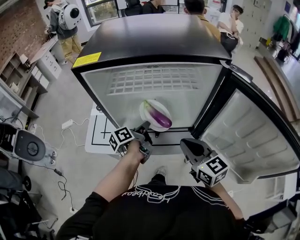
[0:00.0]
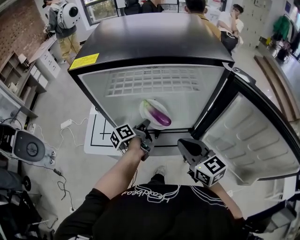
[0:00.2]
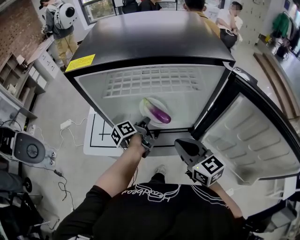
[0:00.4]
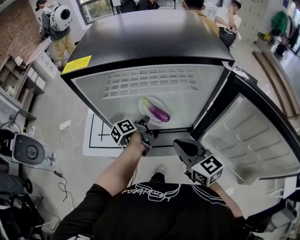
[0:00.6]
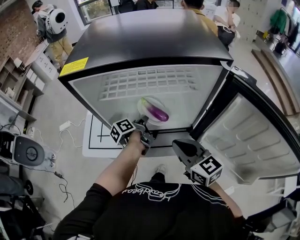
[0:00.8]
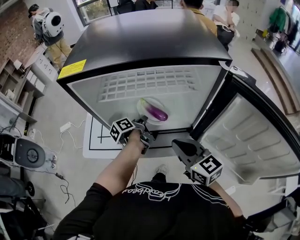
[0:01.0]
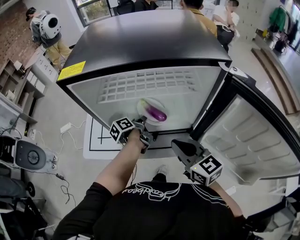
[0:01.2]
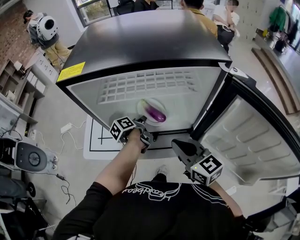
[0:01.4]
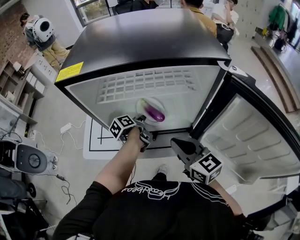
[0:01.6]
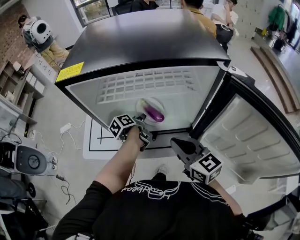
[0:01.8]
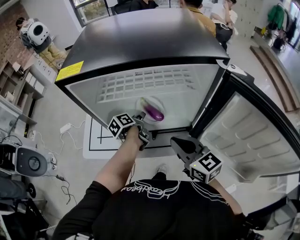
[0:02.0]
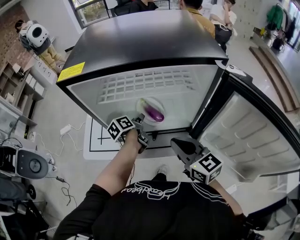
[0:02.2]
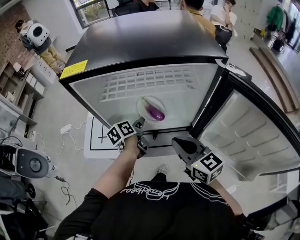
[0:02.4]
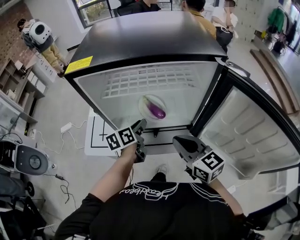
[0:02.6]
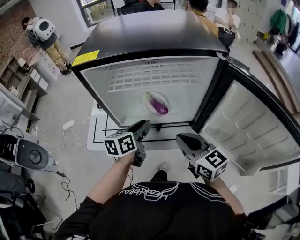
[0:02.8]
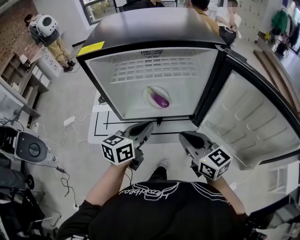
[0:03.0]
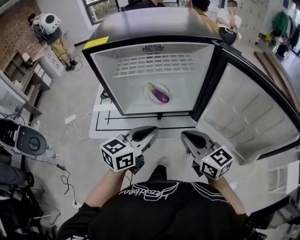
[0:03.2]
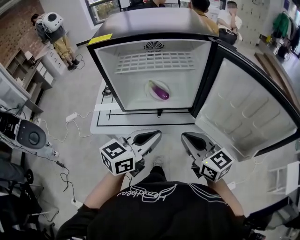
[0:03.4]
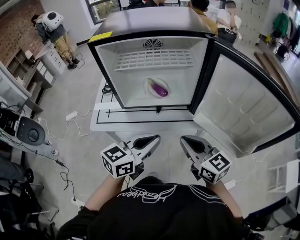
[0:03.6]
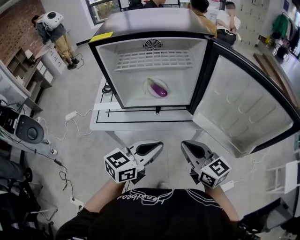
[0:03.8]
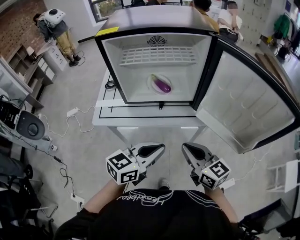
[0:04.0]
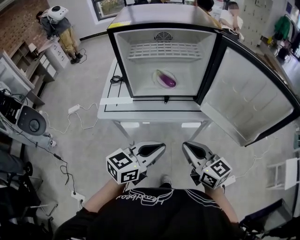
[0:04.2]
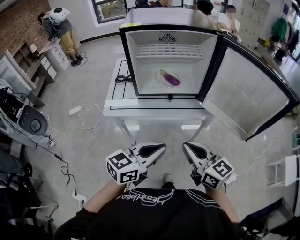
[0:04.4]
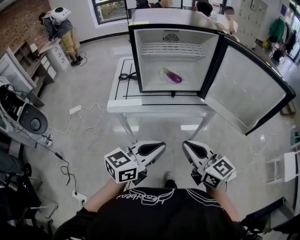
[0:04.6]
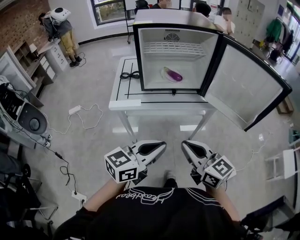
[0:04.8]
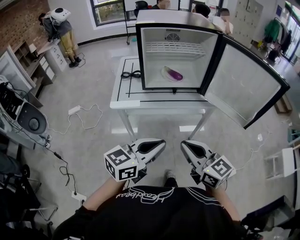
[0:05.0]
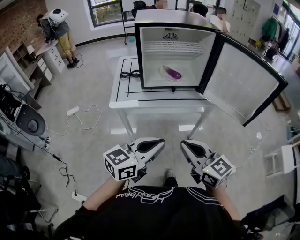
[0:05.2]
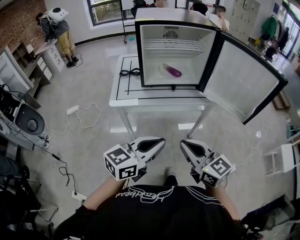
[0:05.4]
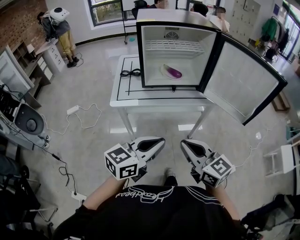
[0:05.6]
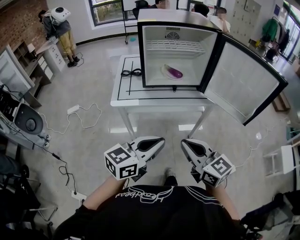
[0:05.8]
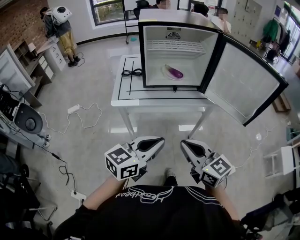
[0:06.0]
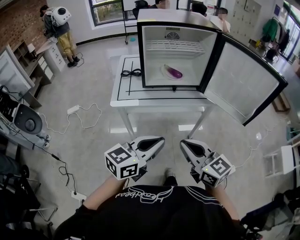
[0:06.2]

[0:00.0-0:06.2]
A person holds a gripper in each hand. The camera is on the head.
0:00.0 to 0:01.6: The left gripper moves forward, roughly 10 cm. The right gripper shifts by some 5 cm.
0:01.6 to 0:03.2: The right gripper travels backward by about 10 cm, while the left gripper goes about 30 cm backward and upward, rotates around the line of its fingers by roughly 60 degrees, clockwise from behind, and opens, then closes once more.
0:03.2 to 0:04.6: Both grippers travel together backward, about 25 cm.
0:04.6 to 0:06.2: The right gripper is displaced backward by roughly 5 cm. Meanwhile the left gripper ends up about 5 cm from where it was.

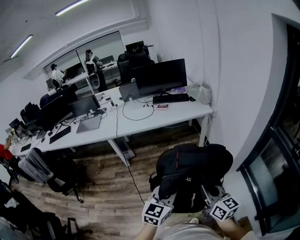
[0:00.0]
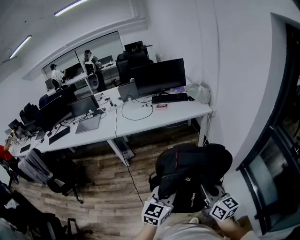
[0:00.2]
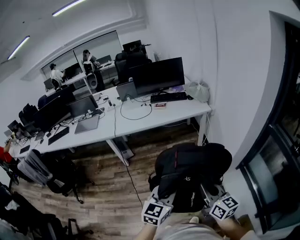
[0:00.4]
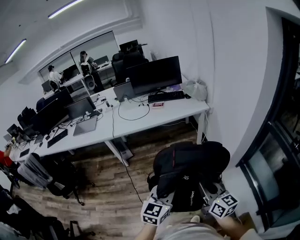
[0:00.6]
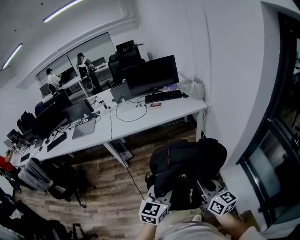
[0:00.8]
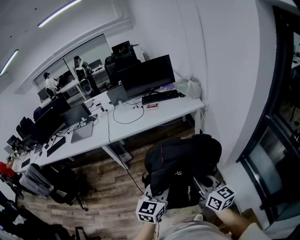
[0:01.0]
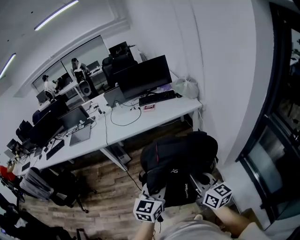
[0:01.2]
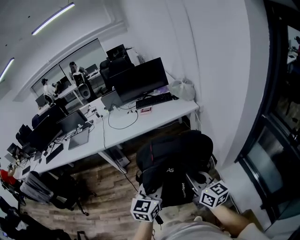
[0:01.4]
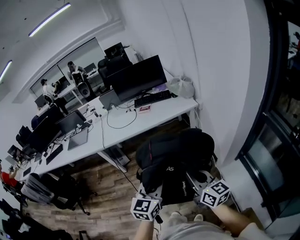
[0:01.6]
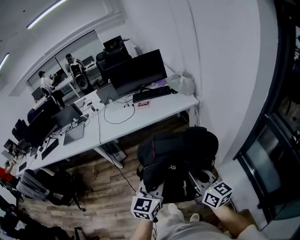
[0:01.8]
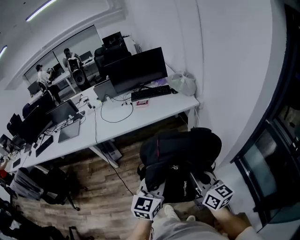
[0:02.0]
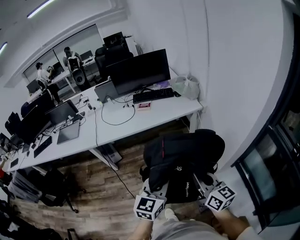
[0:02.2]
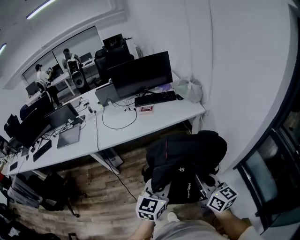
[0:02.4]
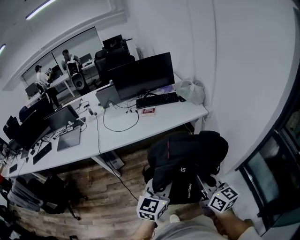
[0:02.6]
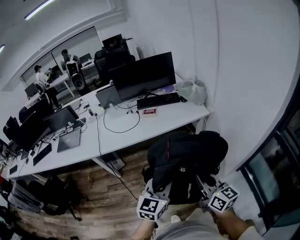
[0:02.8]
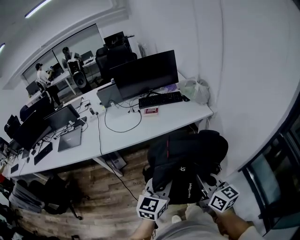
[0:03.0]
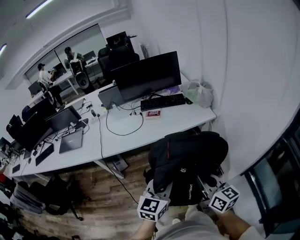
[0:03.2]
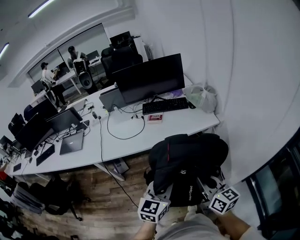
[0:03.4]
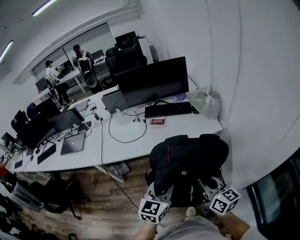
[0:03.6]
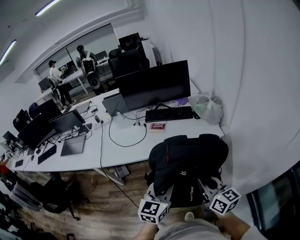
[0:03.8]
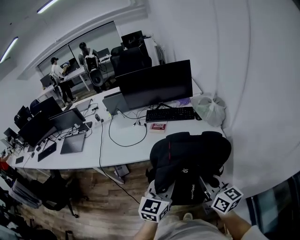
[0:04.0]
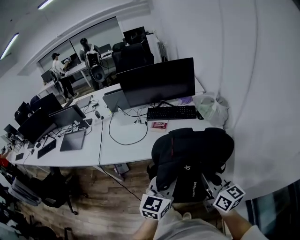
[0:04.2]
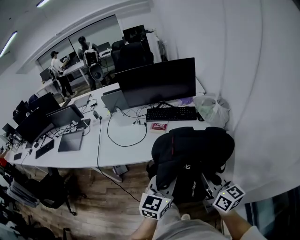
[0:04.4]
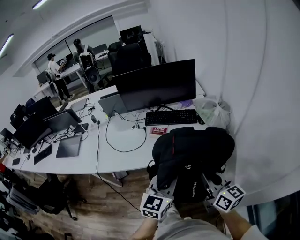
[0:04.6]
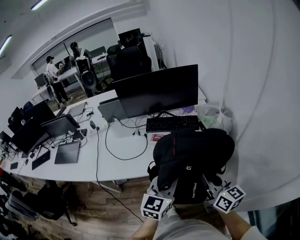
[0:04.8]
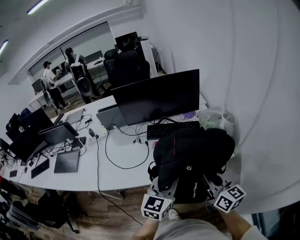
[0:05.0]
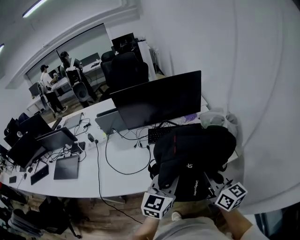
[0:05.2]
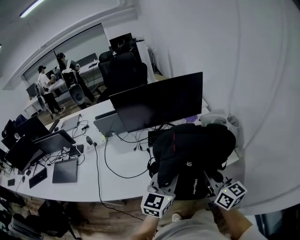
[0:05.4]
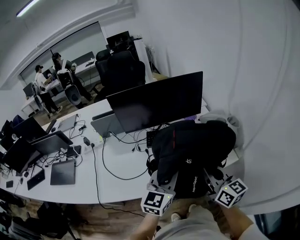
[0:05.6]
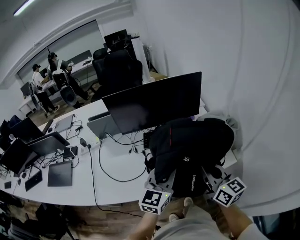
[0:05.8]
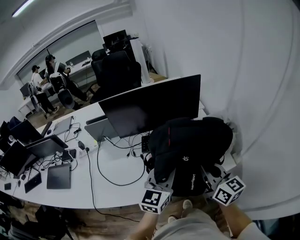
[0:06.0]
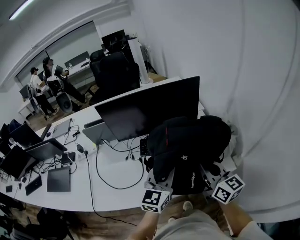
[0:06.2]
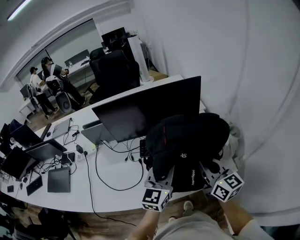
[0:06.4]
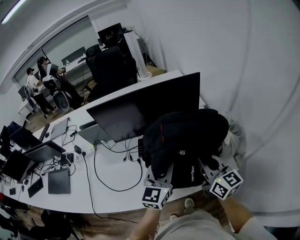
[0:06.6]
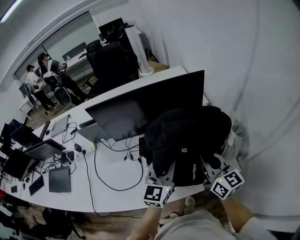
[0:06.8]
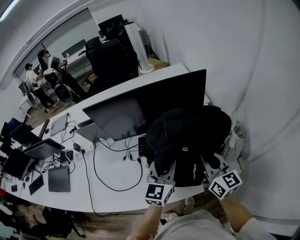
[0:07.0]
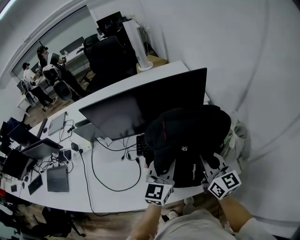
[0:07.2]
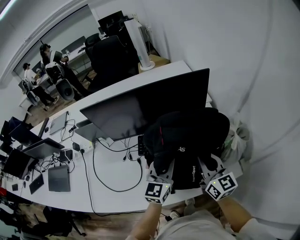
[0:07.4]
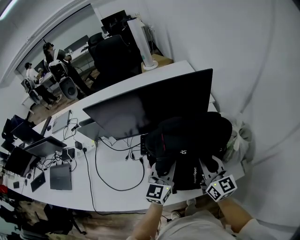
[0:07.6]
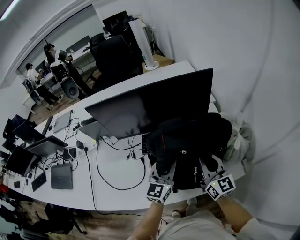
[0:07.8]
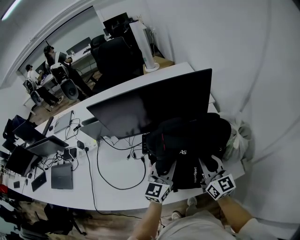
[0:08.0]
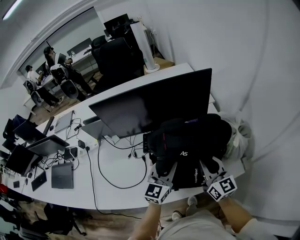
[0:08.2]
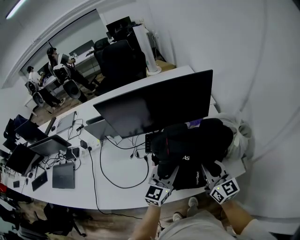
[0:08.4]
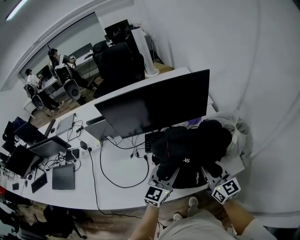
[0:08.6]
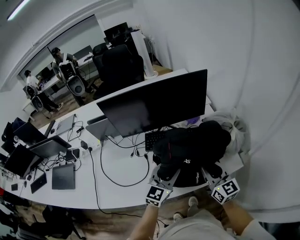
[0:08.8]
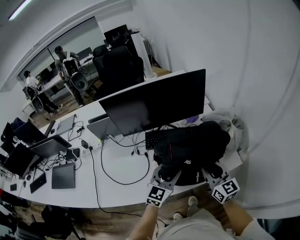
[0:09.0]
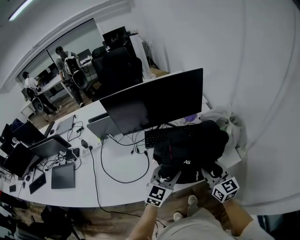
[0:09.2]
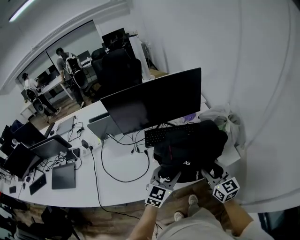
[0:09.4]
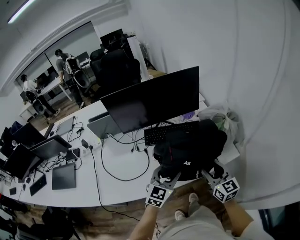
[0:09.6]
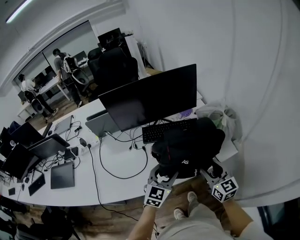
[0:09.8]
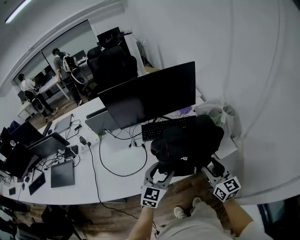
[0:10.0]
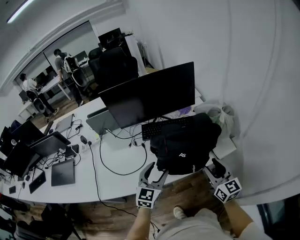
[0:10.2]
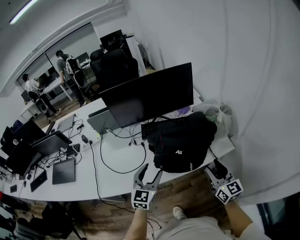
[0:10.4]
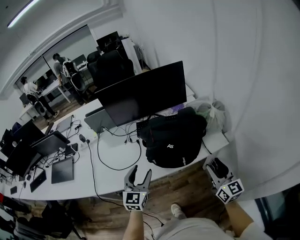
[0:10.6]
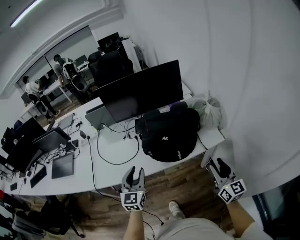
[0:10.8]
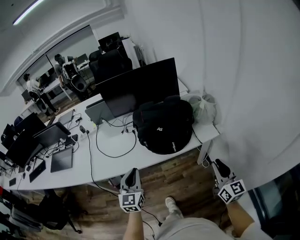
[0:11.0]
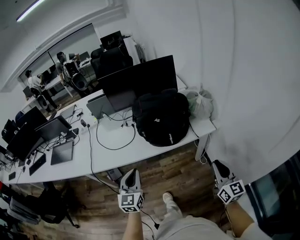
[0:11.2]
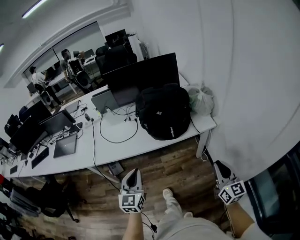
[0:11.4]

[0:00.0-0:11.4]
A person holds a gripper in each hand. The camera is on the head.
0:00.0 to 0:01.4: The grippers both shift forward by approximately 10 cm.
0:01.4 to 0:02.8: The grippers both shift forward by about 20 cm.
0:02.8 to 0:04.2: Both grippers travel together forward, some 25 cm.
0:04.2 to 0:05.6: Both grippers travel together forward, roughly 25 cm.
0:05.6 to 0:07.2: The grippers both shift forward by some 20 cm.
0:07.2 to 0:08.6: The grippers both shift backward by roughly 10 cm. The right gripper opens up. The left gripper opens.
0:08.6 to 0:10.0: Both grippers travel together backward, some 15 cm. The right gripper opens its fingers; the left gripper opens.
0:10.0 to 0:11.4: The right gripper travels backward and to the right by approximately 35 cm, and closes up; the left gripper heads backward, covering about 30 cm, changes its angle by roughly 30 degrees, and closes.

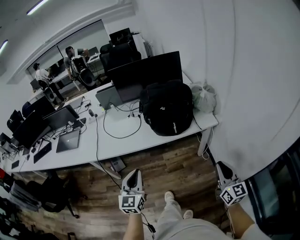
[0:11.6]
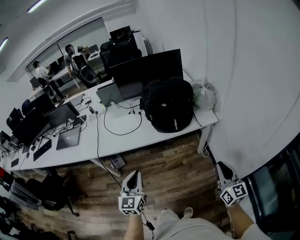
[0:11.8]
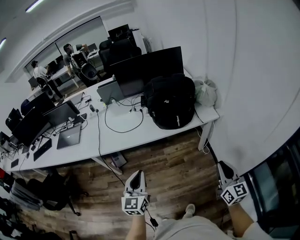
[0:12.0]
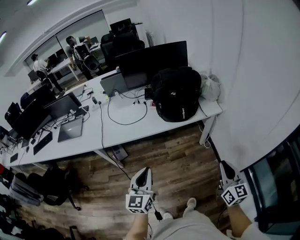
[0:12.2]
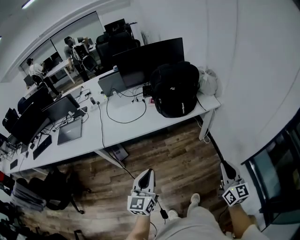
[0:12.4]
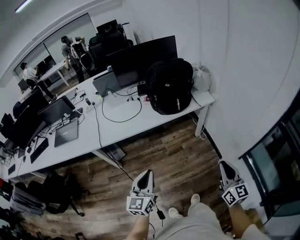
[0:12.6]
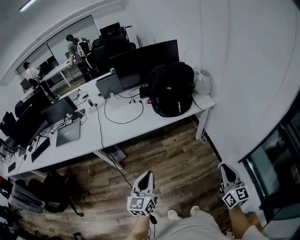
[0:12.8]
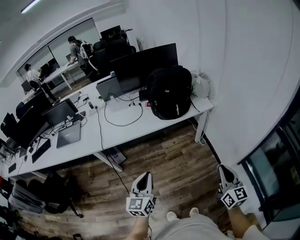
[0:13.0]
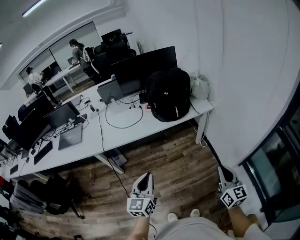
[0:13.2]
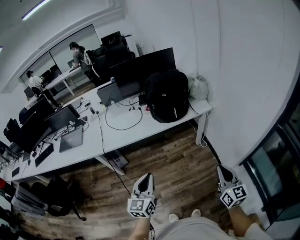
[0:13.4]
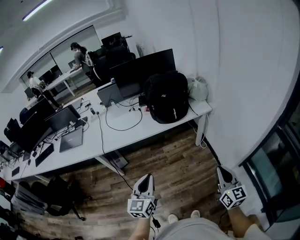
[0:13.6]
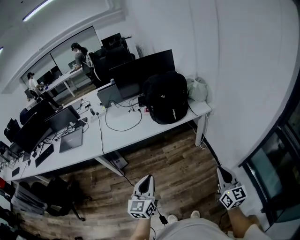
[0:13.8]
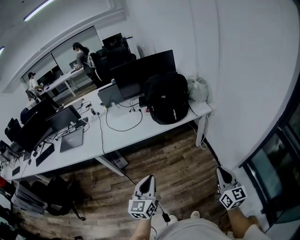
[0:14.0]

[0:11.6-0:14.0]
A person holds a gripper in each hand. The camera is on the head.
0:11.6 to 0:12.8: The left gripper shifts roughly 15 cm backward, while the right gripper moves backward and to the left, roughly 20 cm.
0:12.8 to 0:14.0: The left gripper moves approximately 5 cm.

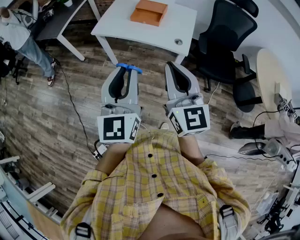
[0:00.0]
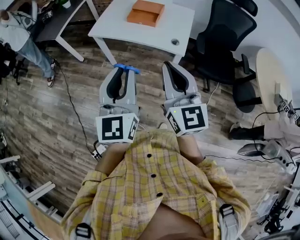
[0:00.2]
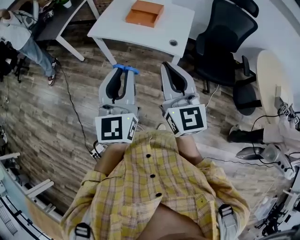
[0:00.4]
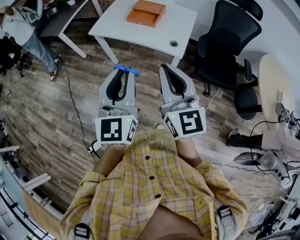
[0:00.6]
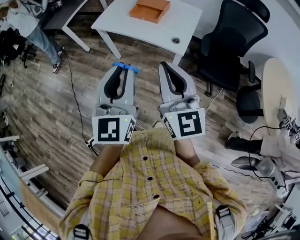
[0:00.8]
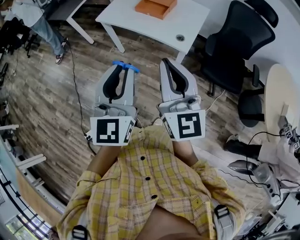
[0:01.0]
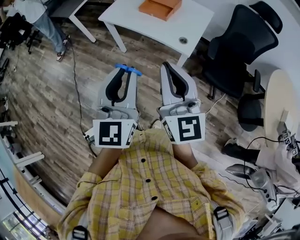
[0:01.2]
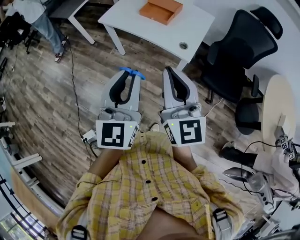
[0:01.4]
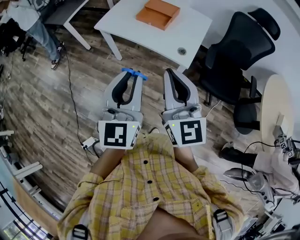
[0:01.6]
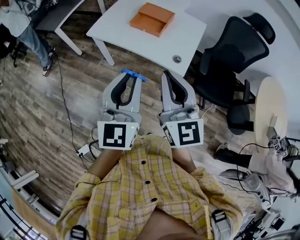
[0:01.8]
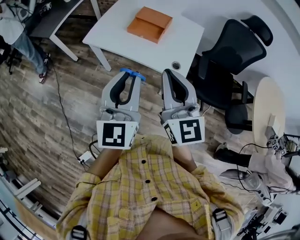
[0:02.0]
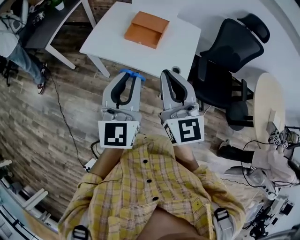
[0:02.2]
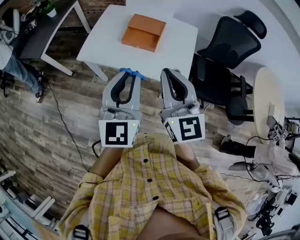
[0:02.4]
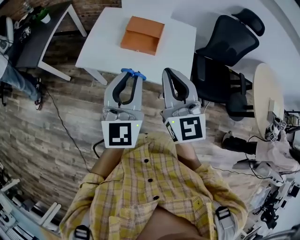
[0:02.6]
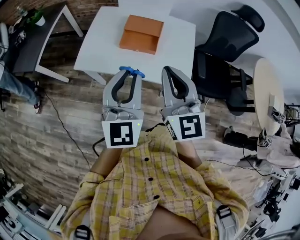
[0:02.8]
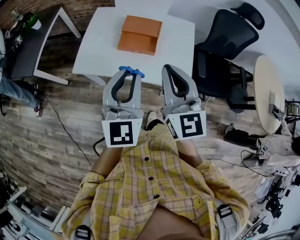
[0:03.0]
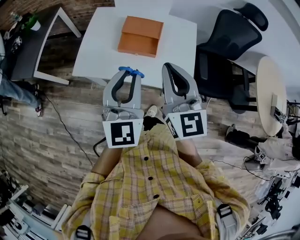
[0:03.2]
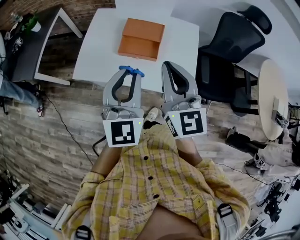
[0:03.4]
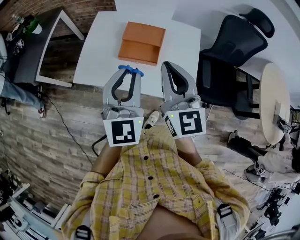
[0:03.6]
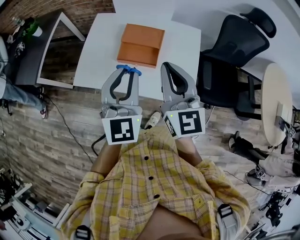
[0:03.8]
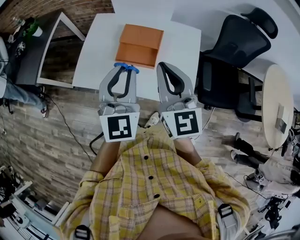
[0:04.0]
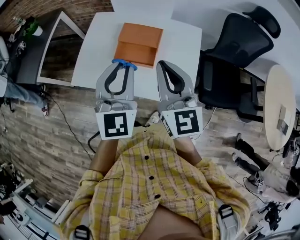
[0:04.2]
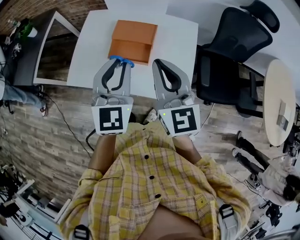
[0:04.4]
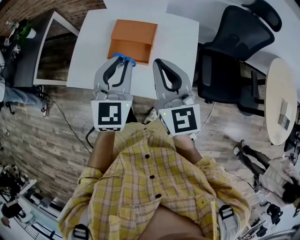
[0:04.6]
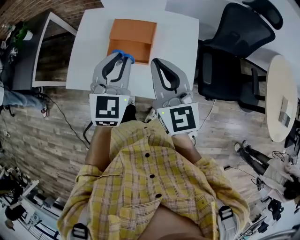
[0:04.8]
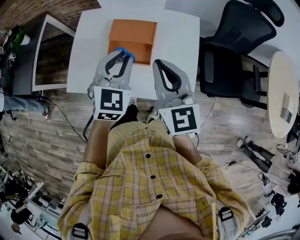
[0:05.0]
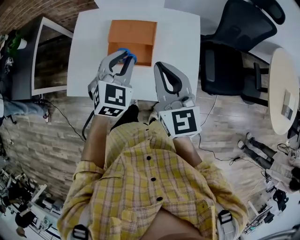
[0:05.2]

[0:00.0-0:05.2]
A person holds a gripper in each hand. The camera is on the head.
0:00.0 to 0:01.8: The grippers both shift forward and to the right by about 15 cm.
0:01.8 to 0:03.4: Both grippers move forward, about 30 cm. The left gripper changes its angle by about 20 degrees.
0:03.4 to 0:05.2: The left gripper heads forward and downward, covering about 20 cm, and turns by about 30 degrees. Meanwhile the right gripper heads forward and downward, covering some 15 cm.
